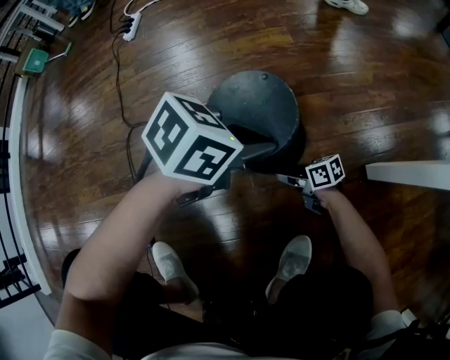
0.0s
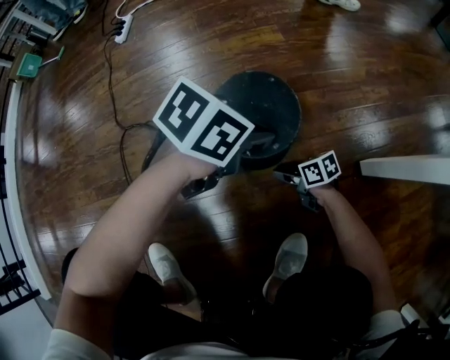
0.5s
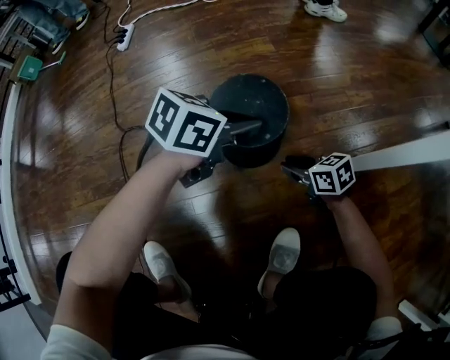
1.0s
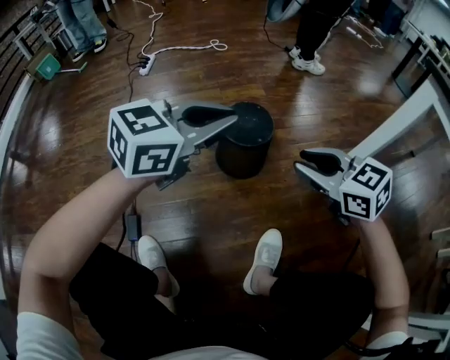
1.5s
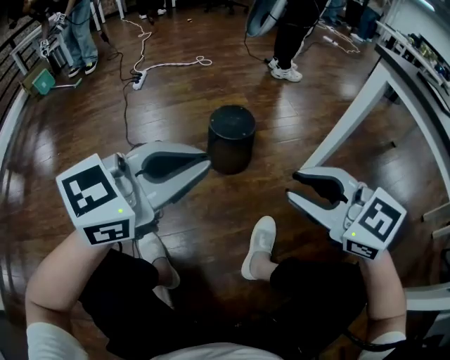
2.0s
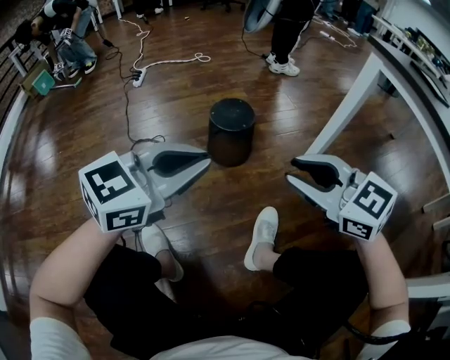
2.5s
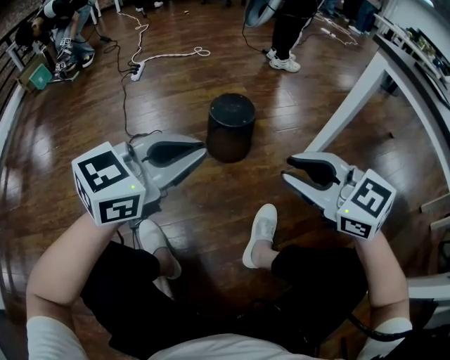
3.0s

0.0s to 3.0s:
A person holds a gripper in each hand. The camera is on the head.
0.0s to 1.5s: The left gripper is displaced upward by about 20 cm, and turns by roughly 40 degrees, while the right gripper heads upward, covering about 40 cm, and twists about 50 degrees counterclockwise, seen from behind.
1.5s to 3.0s: The right gripper travels backward and upward by about 15 cm. Meanwhile the left gripper is displaced backward by approximately 15 cm.

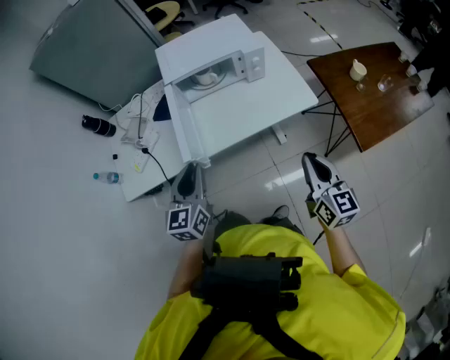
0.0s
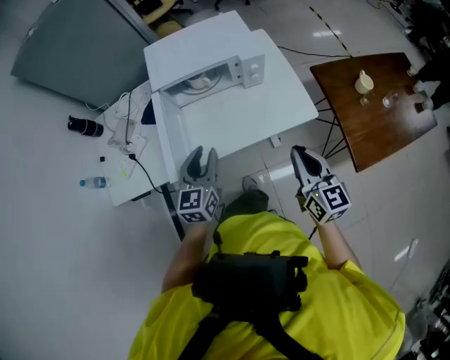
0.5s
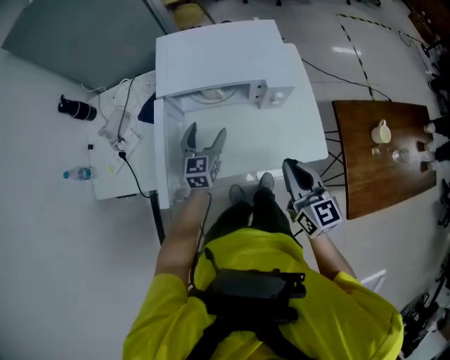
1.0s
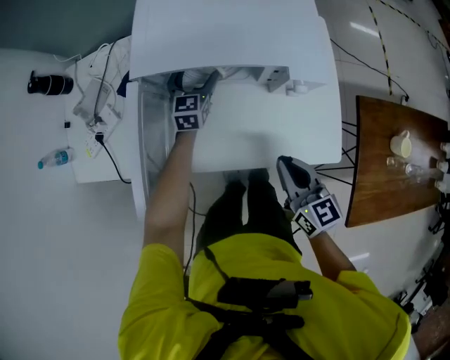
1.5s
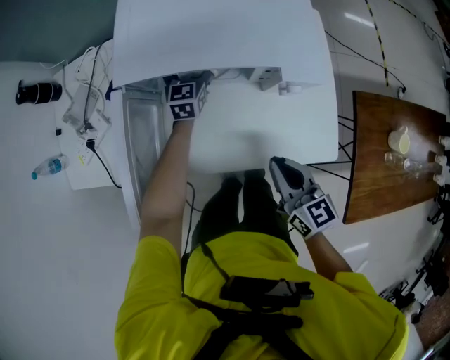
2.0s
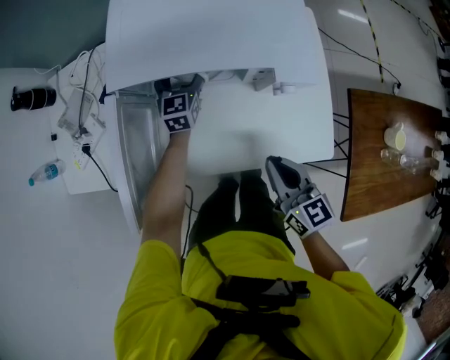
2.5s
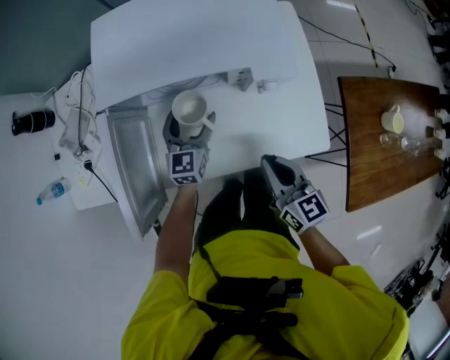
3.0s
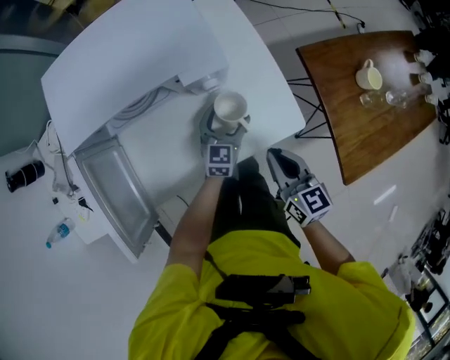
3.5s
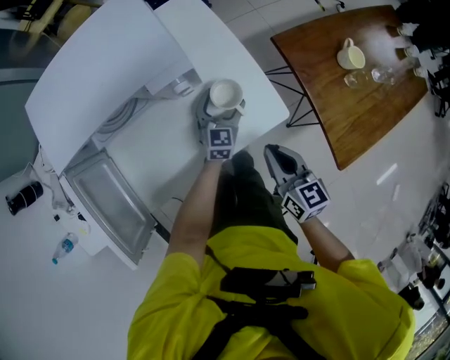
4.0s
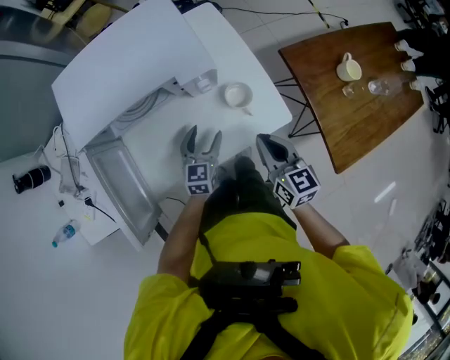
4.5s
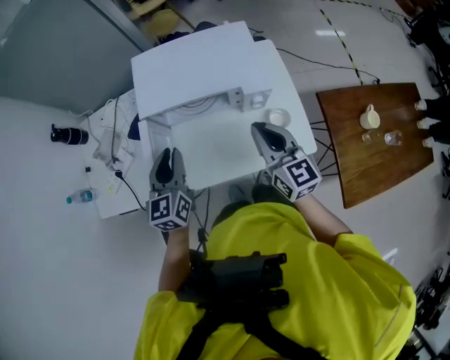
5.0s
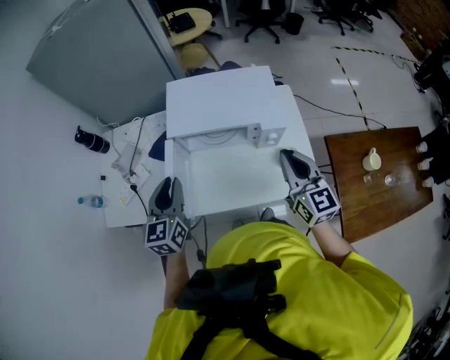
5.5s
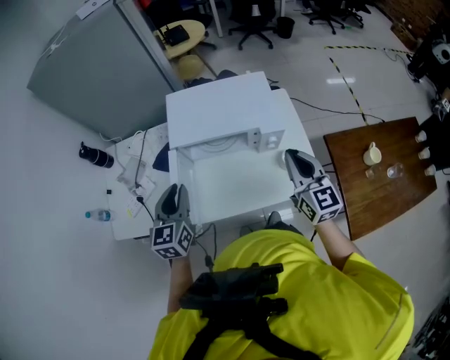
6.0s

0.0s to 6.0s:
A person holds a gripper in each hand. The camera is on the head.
0.0s to 2.0s: The right gripper is displaced forward and downward by some 35 cm, and rotates about 30 degrees, while the left gripper moves forward and downward, about 60 cm, and opens up.
2.0s to 4.0s: The left gripper ends up approximately 40 cm from where it was, and rotates some 30 degrees, while the right gripper ends up some 20 cm from where it was, and rotates about 30 degrees.
4.0s to 6.0s: The left gripper shifts by approximately 60 cm, turns by approximately 30 degrees, and closes up. The right gripper goes approximately 25 cm upward, and rotates approximately 30 degrees.

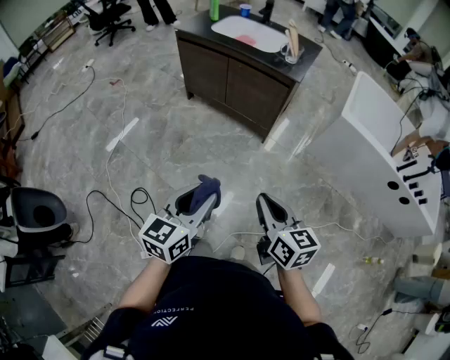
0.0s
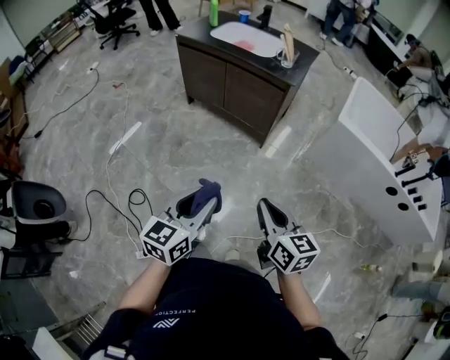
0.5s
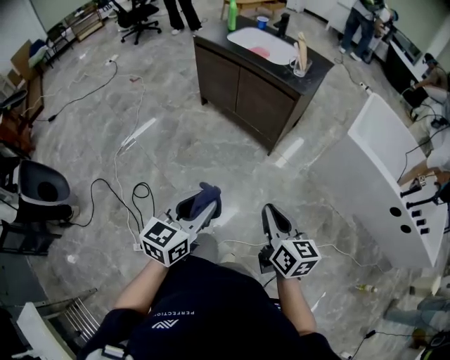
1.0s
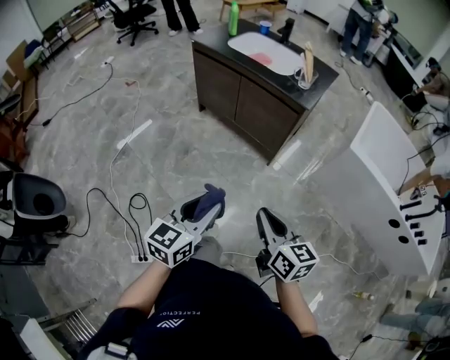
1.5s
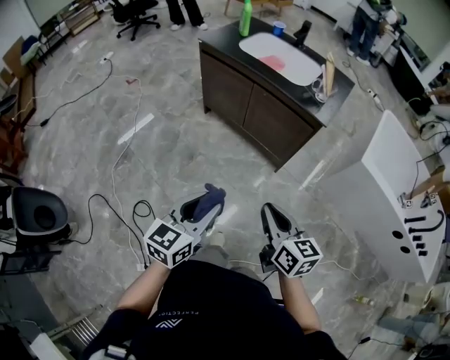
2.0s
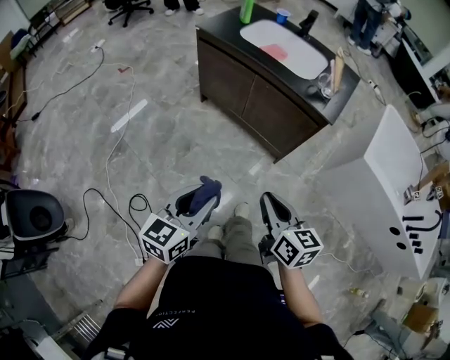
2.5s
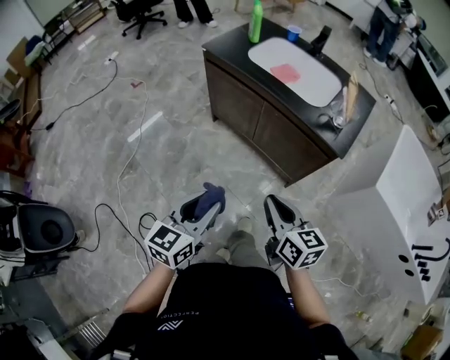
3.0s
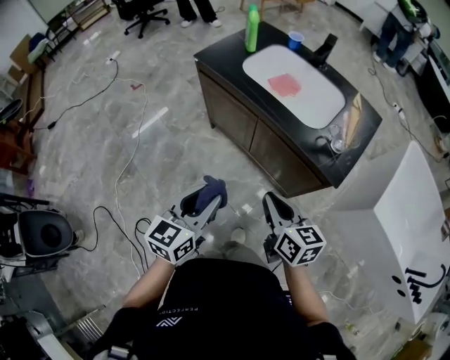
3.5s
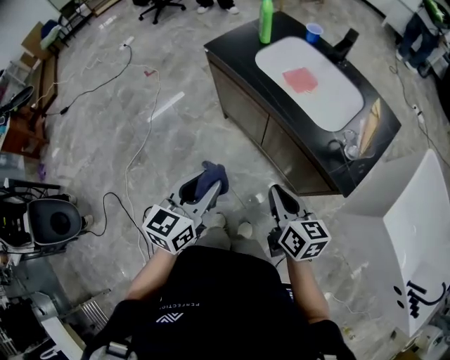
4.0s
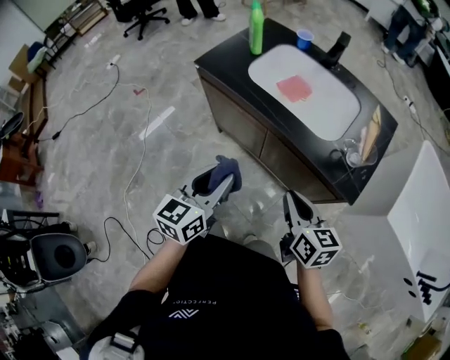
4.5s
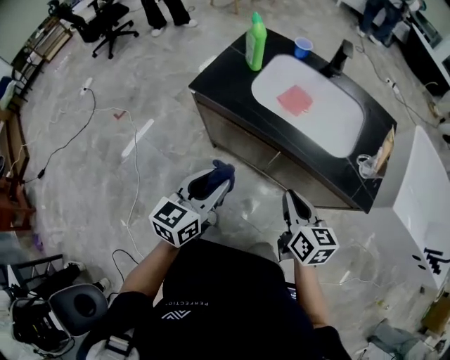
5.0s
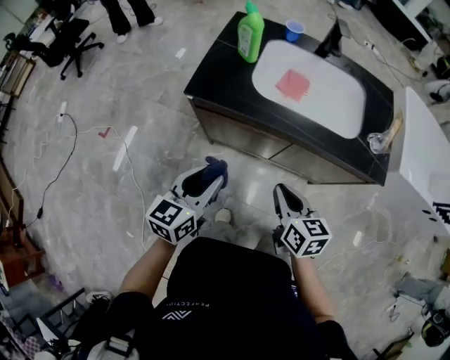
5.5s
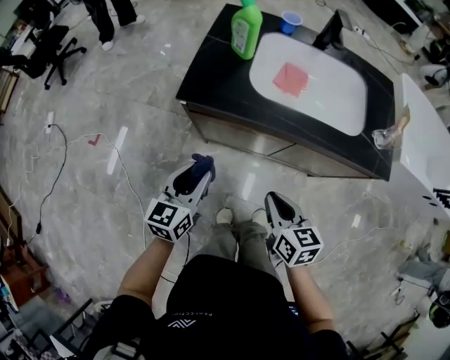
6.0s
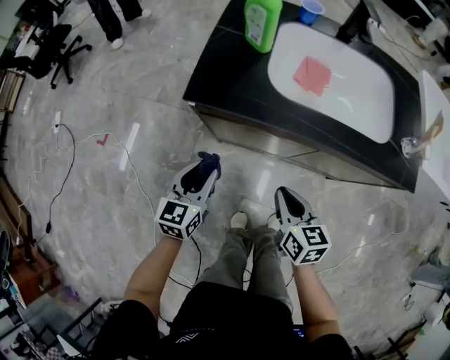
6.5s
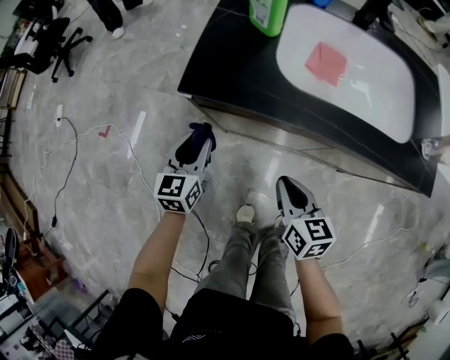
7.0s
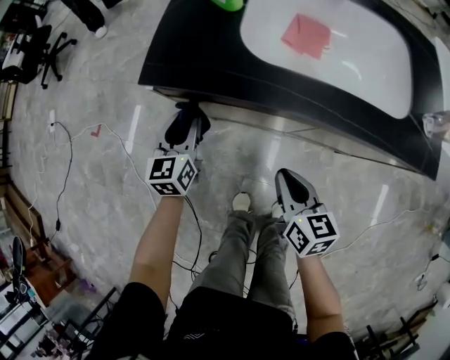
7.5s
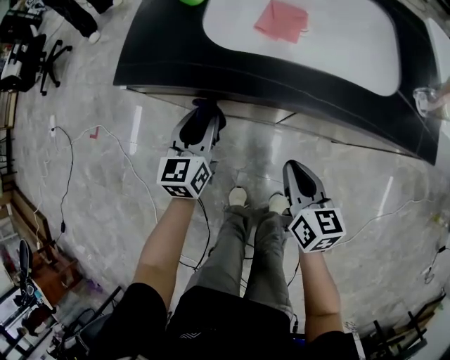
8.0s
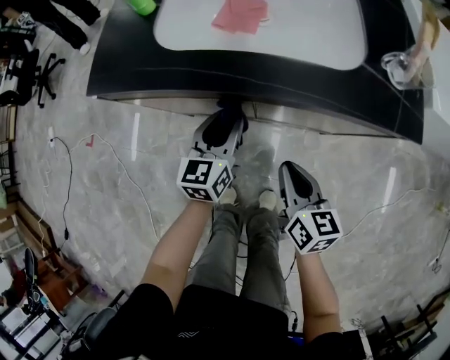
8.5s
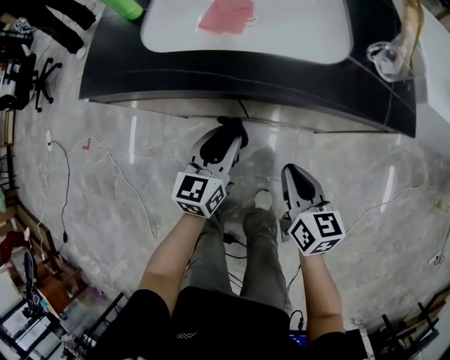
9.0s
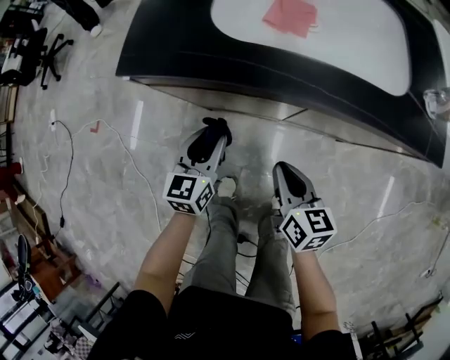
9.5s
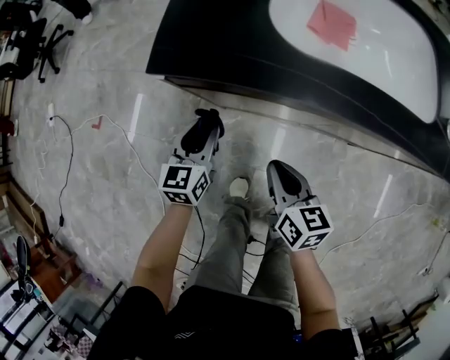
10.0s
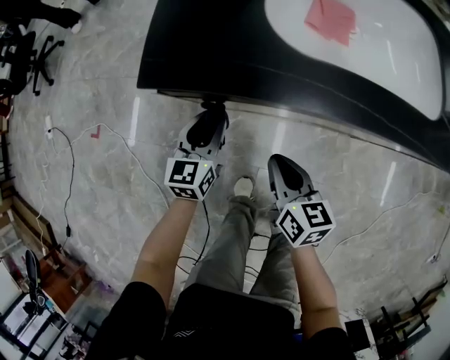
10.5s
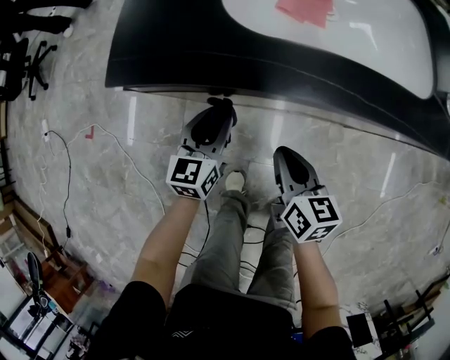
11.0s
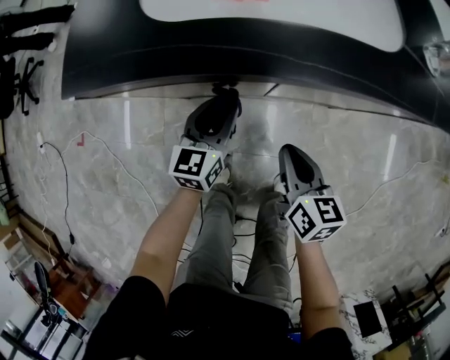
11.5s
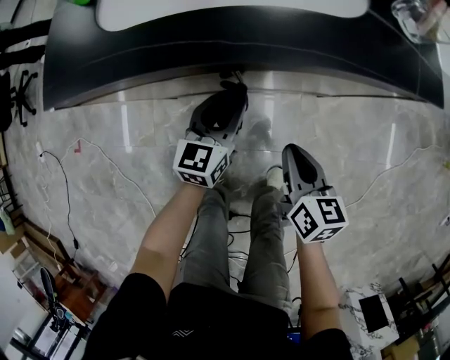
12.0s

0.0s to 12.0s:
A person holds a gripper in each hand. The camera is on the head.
0.0s to 2.0s: Both grippers move forward, roughly 15 cm.
2.0s to 4.0s: Both grippers travel together forward, some 35 cm.
4.0s to 6.0s: The left gripper changes place by approximately 40 cm, and swivels roughly 30 degrees. Meanwhile the right gripper ends up roughly 30 cm from where it was, and rotates some 30 degrees.
6.0s to 8.0s: The left gripper moves downward, forward and to the right, some 20 cm. Meanwhile the right gripper heads downward and to the right, covering approximately 15 cm.
8.0s to 10.0s: The left gripper is displaced to the left and downward by roughly 15 cm; the right gripper goes approximately 15 cm to the left.
10.0s to 12.0s: The two grippers go some 25 cm to the right. The left gripper swivels roughly 20 degrees.

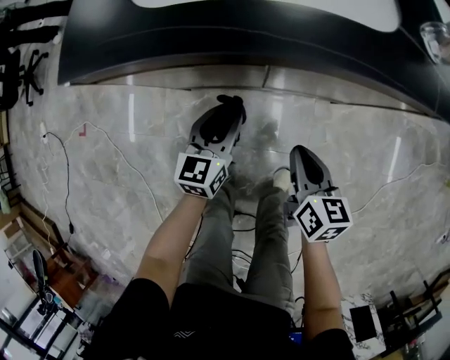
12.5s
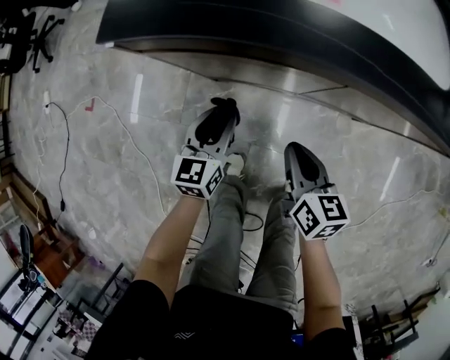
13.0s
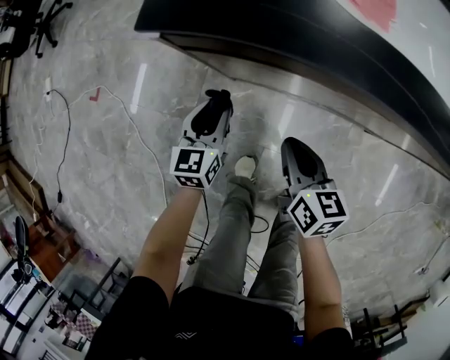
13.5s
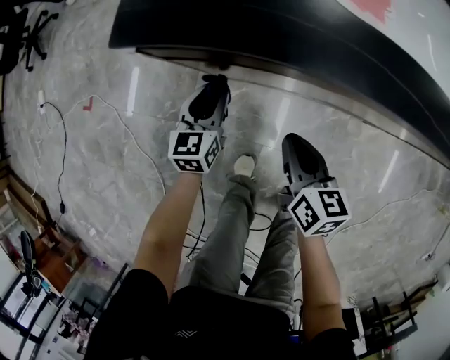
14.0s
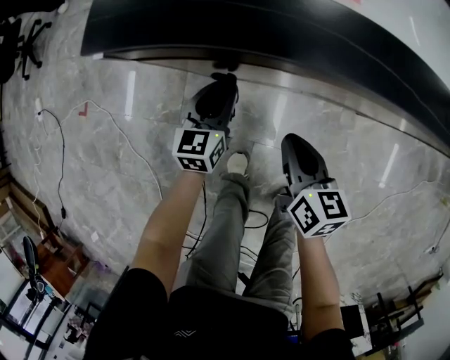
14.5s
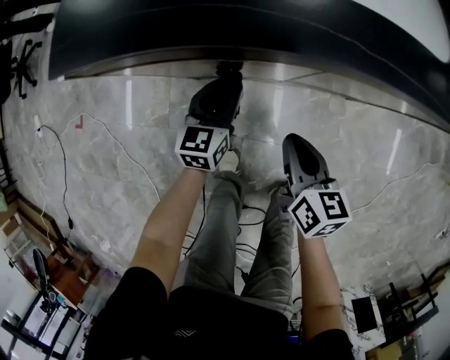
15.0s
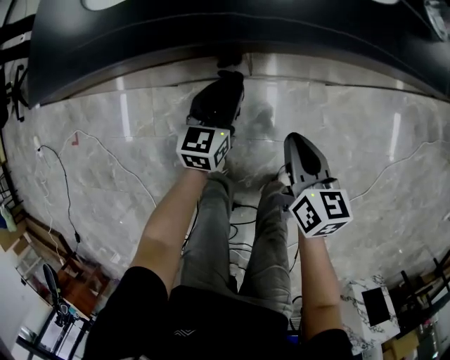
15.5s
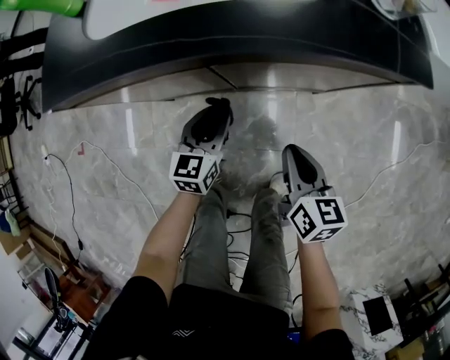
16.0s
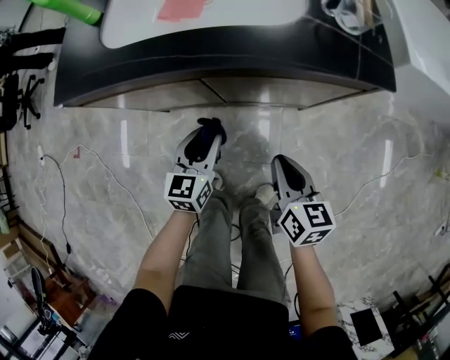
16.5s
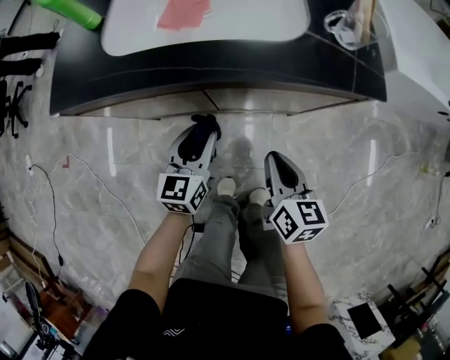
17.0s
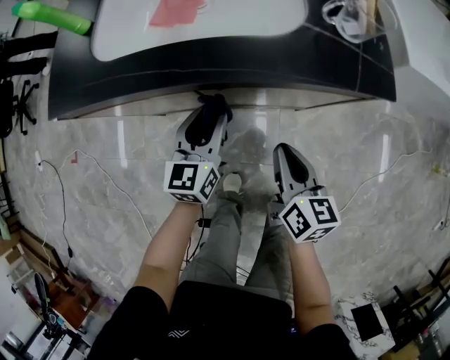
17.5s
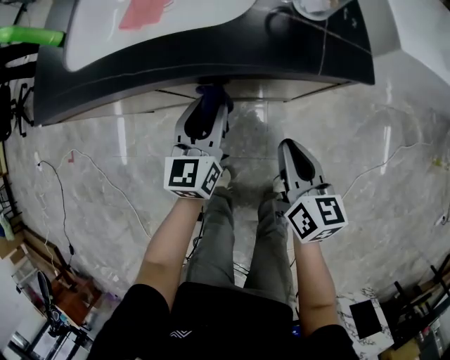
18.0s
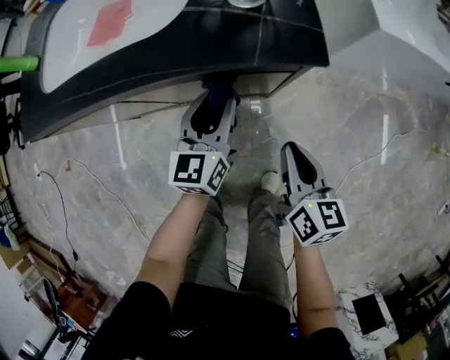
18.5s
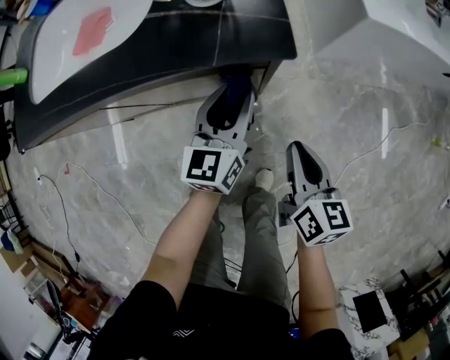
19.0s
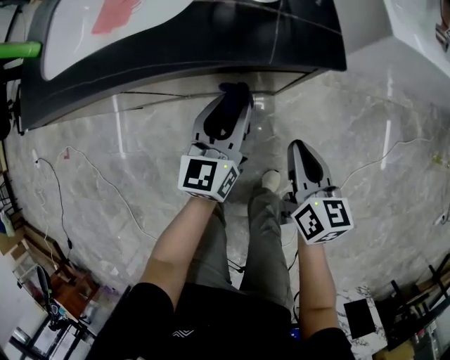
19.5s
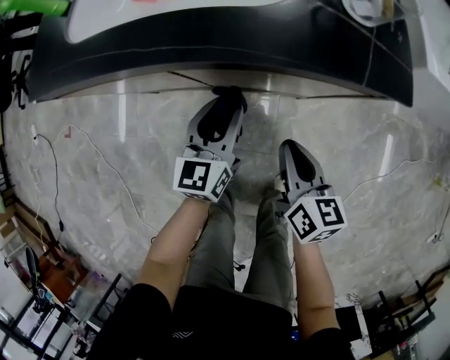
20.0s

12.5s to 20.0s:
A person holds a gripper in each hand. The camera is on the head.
12.5s to 14.5s: Both grippers travel together to the left and forward, approximately 20 cm.
14.5s to 16.5s: The right gripper is displaced to the right by roughly 25 cm; the left gripper is displaced to the right and upward by roughly 25 cm.
16.5s to 18.0s: The right gripper heads to the right, covering about 10 cm, while the left gripper shifts roughly 15 cm to the right, forward and upward.
18.0s to 20.0s: The right gripper goes to the right and returns, some 15 cm each way. Meanwhile the left gripper moves some 20 cm to the right and comes back.
